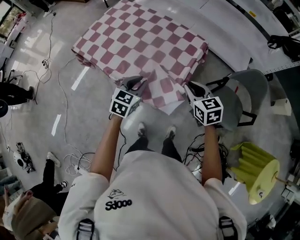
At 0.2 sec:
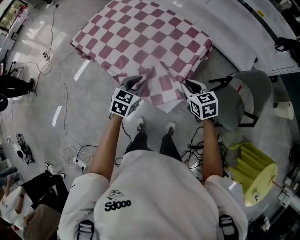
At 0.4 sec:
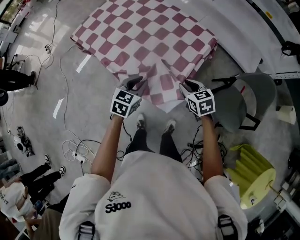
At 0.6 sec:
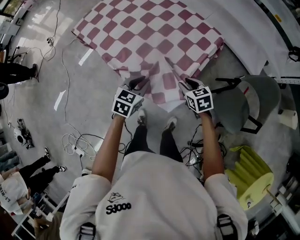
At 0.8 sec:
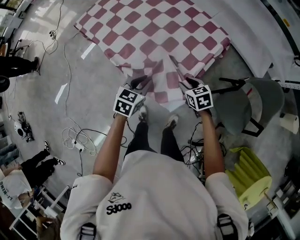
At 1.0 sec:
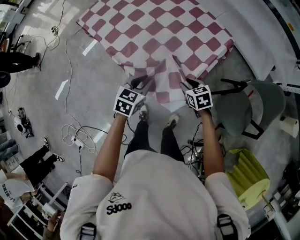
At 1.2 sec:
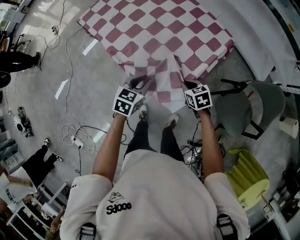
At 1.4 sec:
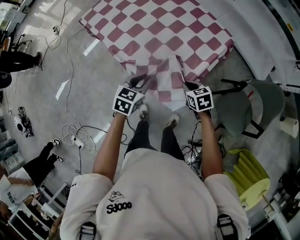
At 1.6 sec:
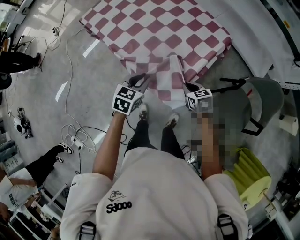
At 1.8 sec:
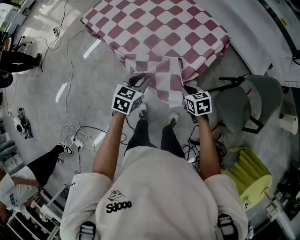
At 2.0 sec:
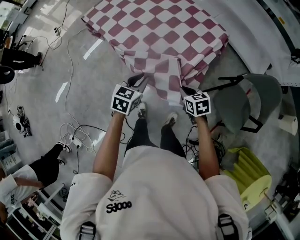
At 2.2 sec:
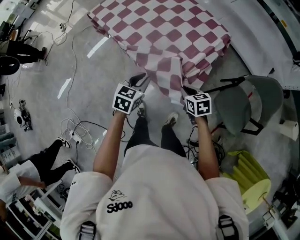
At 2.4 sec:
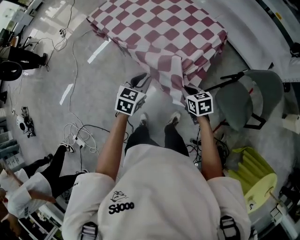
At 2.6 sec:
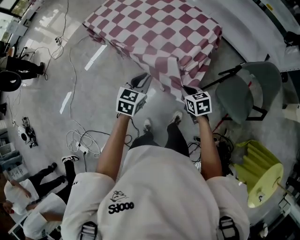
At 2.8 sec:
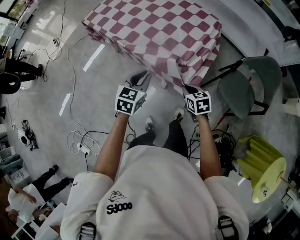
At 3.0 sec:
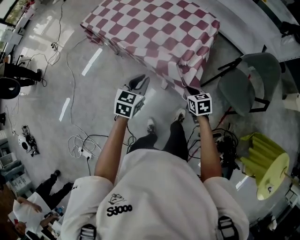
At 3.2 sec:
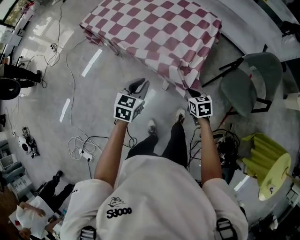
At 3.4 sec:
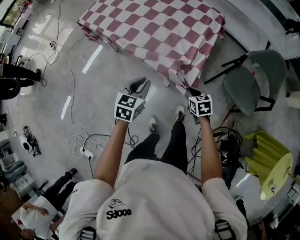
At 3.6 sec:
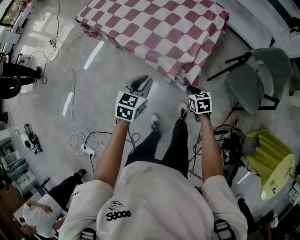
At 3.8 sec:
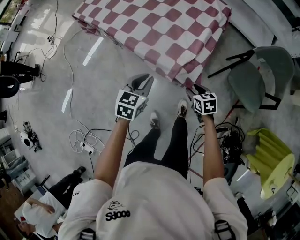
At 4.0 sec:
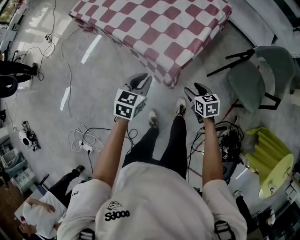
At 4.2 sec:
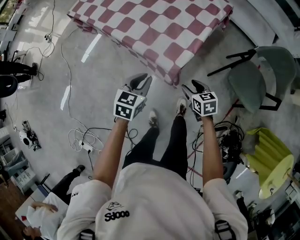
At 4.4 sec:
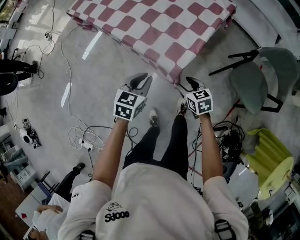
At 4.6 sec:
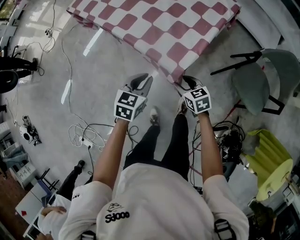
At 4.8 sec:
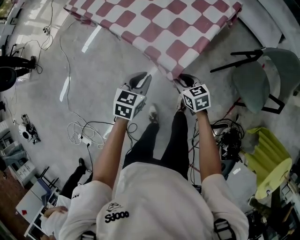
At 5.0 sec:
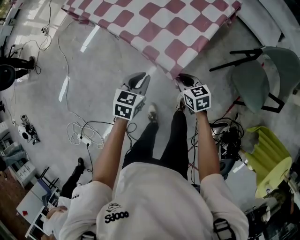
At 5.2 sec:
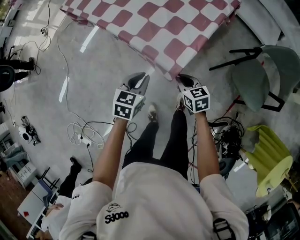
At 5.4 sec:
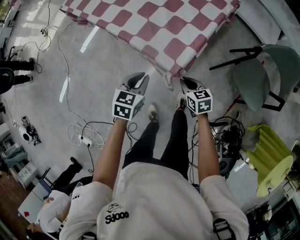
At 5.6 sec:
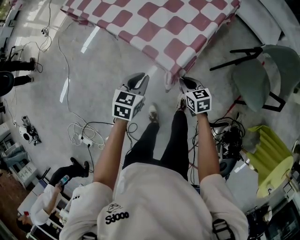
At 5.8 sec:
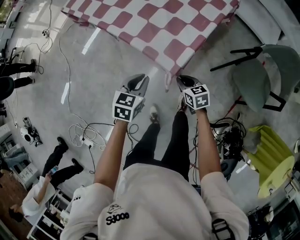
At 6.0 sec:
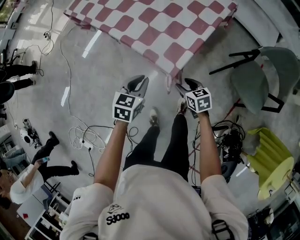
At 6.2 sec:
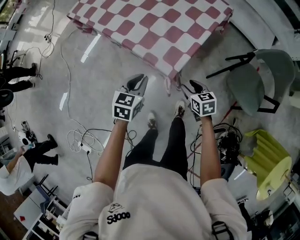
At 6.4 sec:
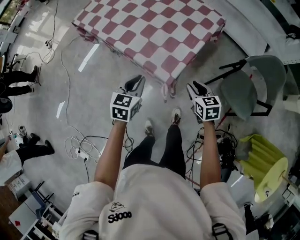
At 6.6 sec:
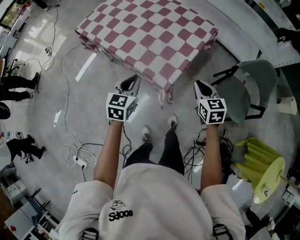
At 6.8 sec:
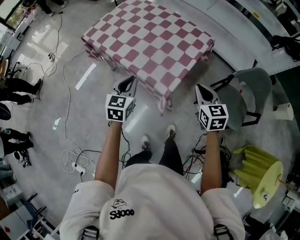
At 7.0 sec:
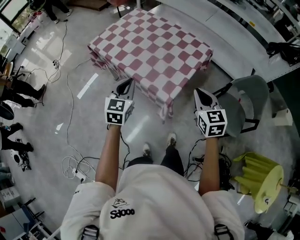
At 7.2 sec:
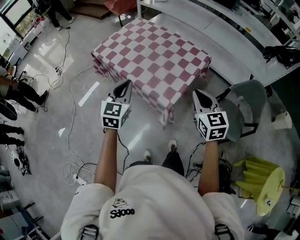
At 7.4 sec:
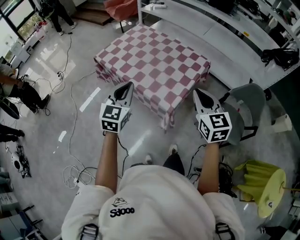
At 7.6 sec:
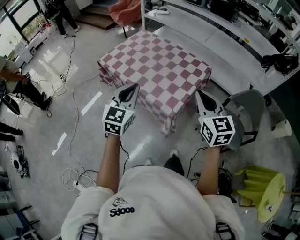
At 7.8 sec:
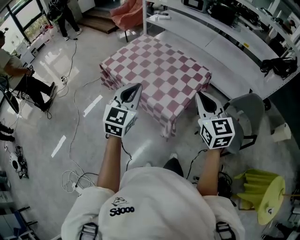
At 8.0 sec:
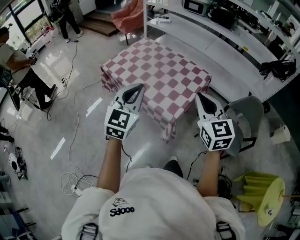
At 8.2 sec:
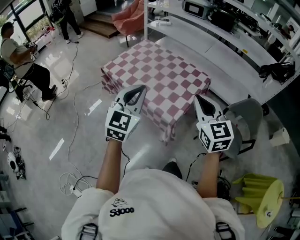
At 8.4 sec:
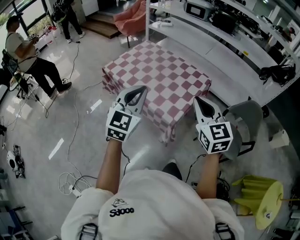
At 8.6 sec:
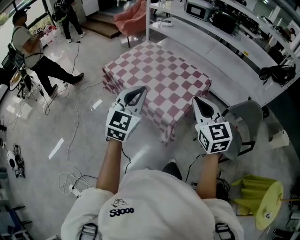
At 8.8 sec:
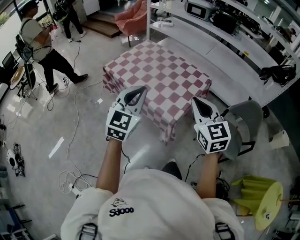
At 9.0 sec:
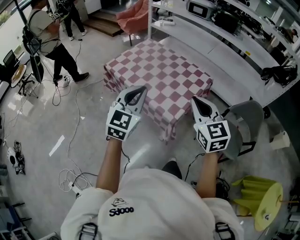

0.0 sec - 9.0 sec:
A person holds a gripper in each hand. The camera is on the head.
0.0 sec - 1.6 sec: The right gripper is displaced downward by approximately 20 cm, turns by some 20 degrees, and opens, then closes once more, while the left gripper moves downward, about 10 cm.
1.6 sec - 3.0 sec: Both grippers travel together backward, approximately 15 cm.
3.0 sec - 4.4 sec: Both grippers travel together downward, about 10 cm. The right gripper opens its fingers.
4.4 sec - 6.0 sec: The right gripper closes and opens again.
6.0 sec - 7.6 sec: The grippers both shift upward by approximately 40 cm. The left gripper tips its fingers upward by some 30 degrees; the right gripper angles its fingers upward, by some 30 degrees, and closes.
7.6 sec - 9.0 sec: The right gripper moves roughly 5 cm, while the left gripper goes roughly 5 cm upward.

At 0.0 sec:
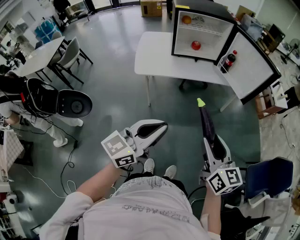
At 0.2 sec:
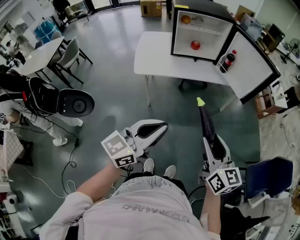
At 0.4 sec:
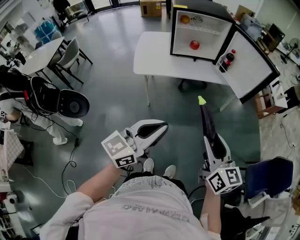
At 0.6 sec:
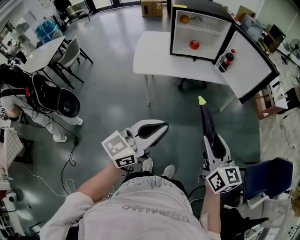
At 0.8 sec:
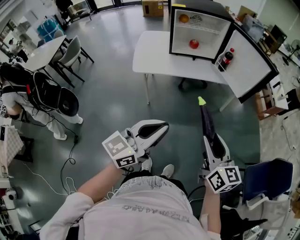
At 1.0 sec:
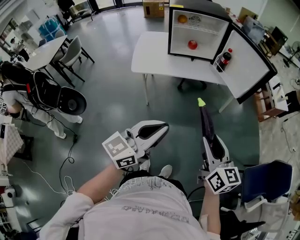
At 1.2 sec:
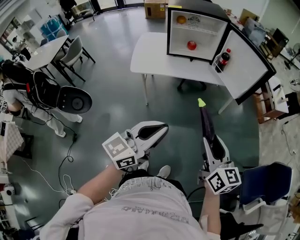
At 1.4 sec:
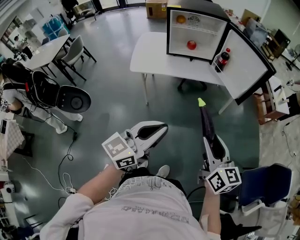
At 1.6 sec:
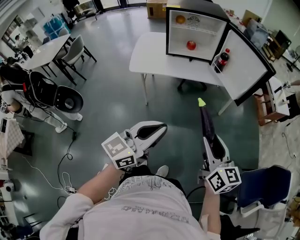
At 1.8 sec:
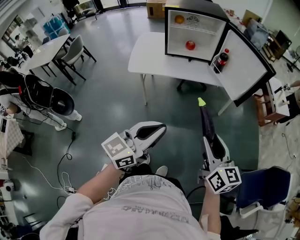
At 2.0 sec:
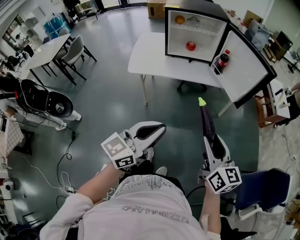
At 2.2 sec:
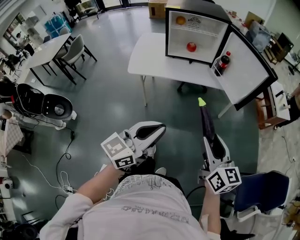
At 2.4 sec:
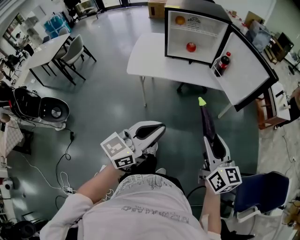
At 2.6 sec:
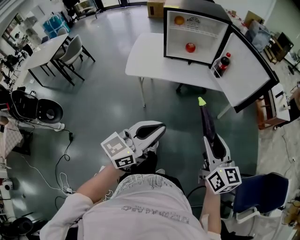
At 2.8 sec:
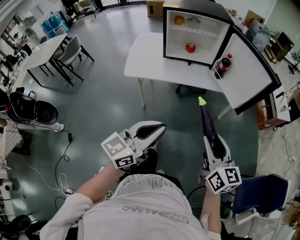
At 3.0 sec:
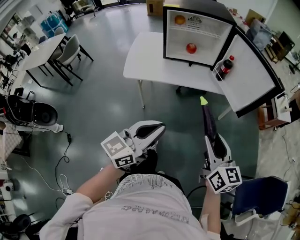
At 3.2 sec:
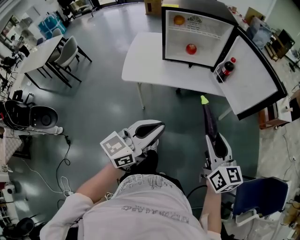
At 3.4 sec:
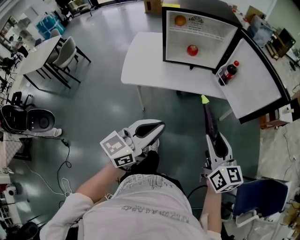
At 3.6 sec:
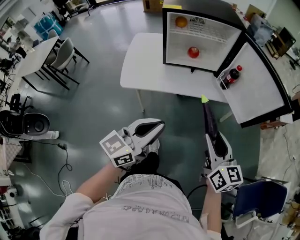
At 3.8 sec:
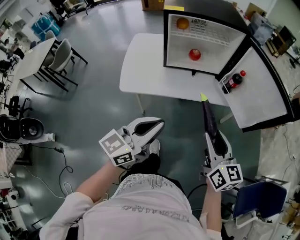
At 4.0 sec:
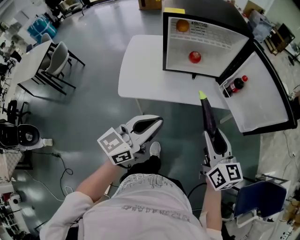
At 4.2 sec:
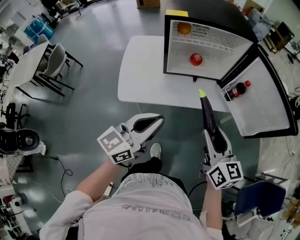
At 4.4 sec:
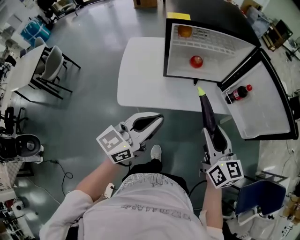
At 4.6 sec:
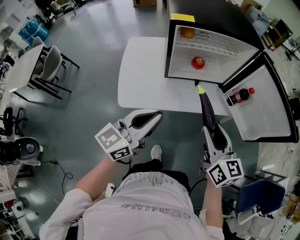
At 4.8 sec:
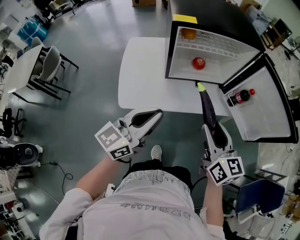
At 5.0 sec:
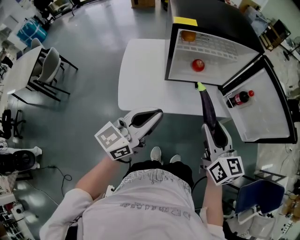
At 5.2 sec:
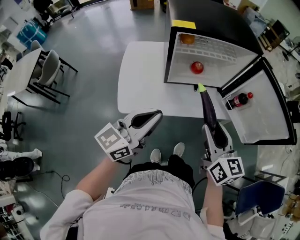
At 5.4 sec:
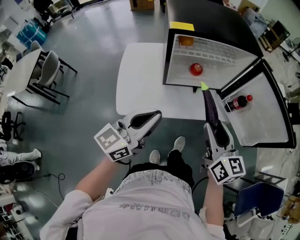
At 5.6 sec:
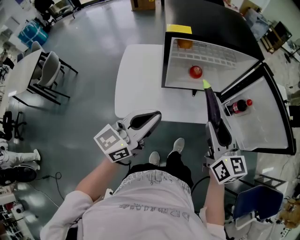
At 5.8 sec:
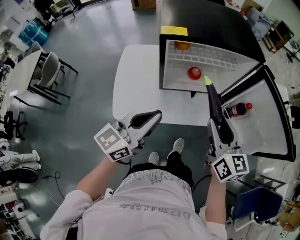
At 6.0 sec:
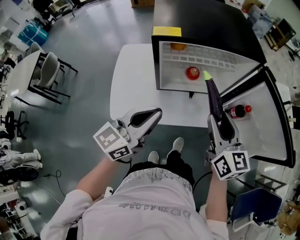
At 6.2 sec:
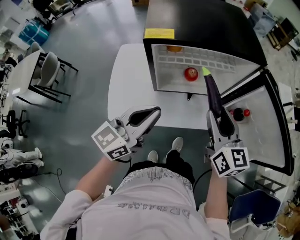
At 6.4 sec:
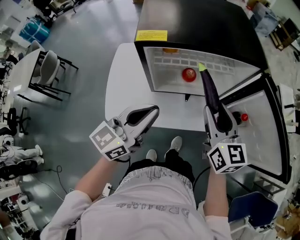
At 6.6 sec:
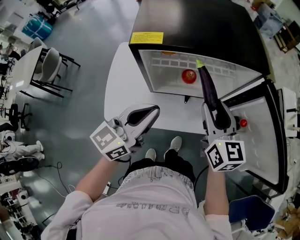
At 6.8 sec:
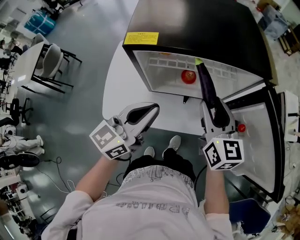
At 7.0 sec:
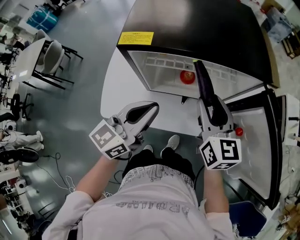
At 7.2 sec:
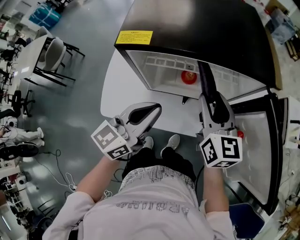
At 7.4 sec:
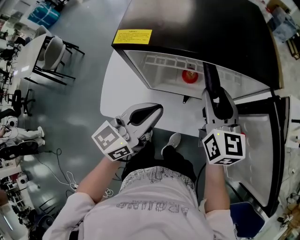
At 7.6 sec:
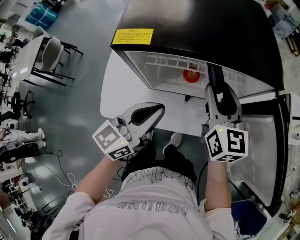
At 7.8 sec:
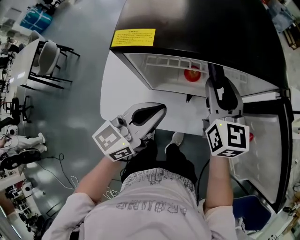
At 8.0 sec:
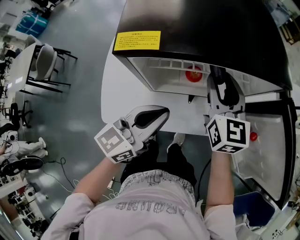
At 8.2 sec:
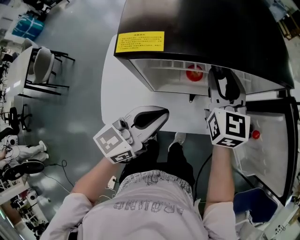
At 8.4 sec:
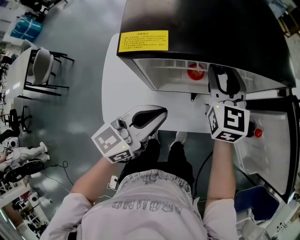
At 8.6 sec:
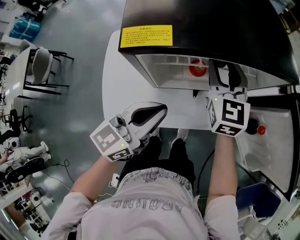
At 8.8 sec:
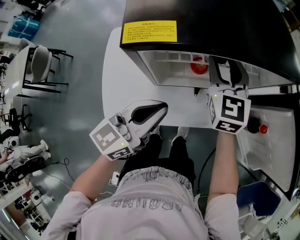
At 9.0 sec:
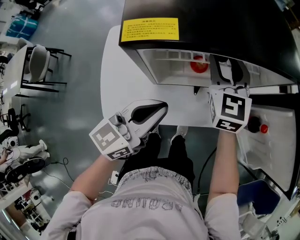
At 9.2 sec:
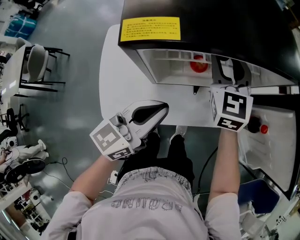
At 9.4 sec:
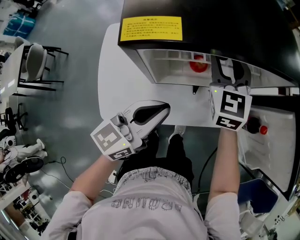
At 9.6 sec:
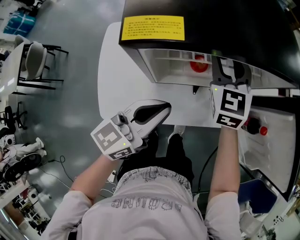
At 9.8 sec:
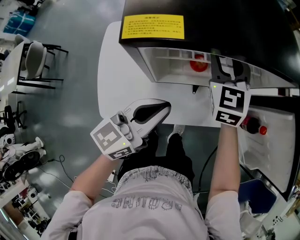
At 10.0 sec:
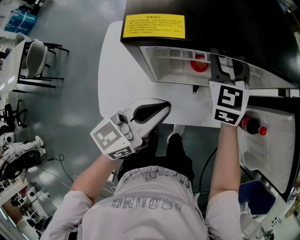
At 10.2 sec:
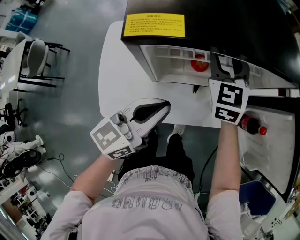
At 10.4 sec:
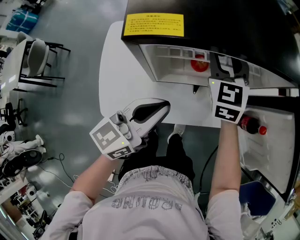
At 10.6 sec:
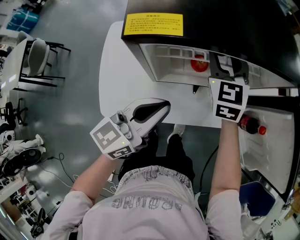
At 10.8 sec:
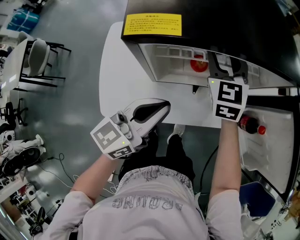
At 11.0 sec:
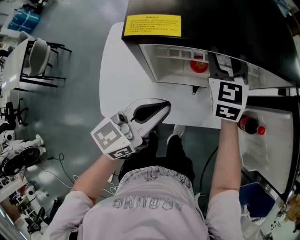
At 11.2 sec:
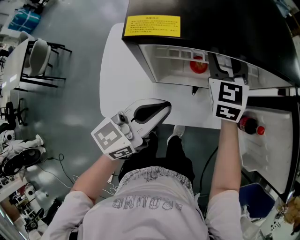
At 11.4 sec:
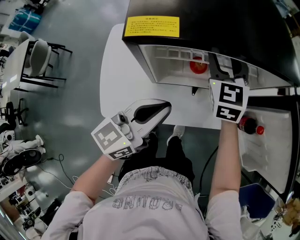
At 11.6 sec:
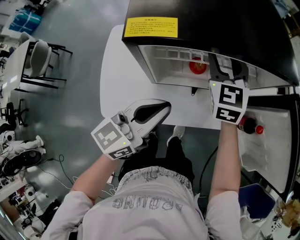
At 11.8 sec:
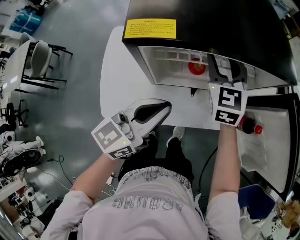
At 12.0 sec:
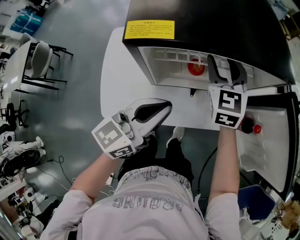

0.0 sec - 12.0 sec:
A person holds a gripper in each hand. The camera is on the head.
0.0 sec - 1.6 sec: The two grippers go about 10 cm to the right.
1.6 sec - 3.0 sec: Both grippers travel together forward, some 10 cm.
3.0 sec - 4.4 sec: The two grippers go some 30 cm forward and to the left.
4.4 sec - 6.0 sec: Both grippers move forward, roughly 15 cm.
6.0 sec - 7.6 sec: The left gripper shifts approximately 10 cm forward and to the right. The right gripper shifts some 20 cm forward.
7.6 sec - 9.0 sec: The right gripper travels to the left and forward by roughly 10 cm, and rotates approximately 30 degrees. The left gripper changes place by approximately 5 cm.
9.0 sec - 12.0 sec: There are only small adjustments of the grippers.

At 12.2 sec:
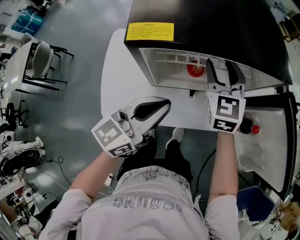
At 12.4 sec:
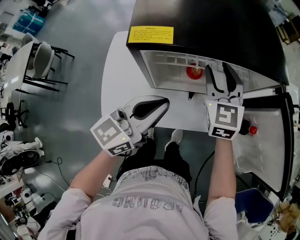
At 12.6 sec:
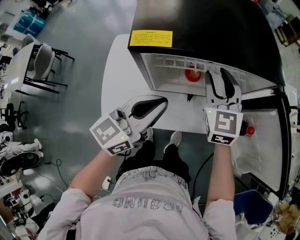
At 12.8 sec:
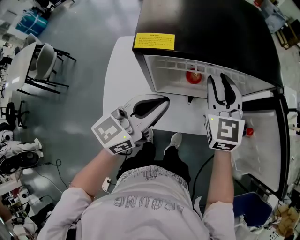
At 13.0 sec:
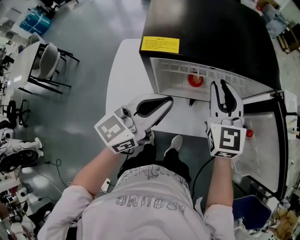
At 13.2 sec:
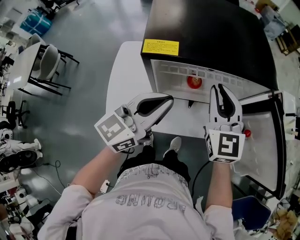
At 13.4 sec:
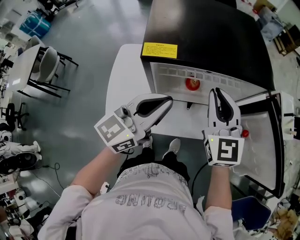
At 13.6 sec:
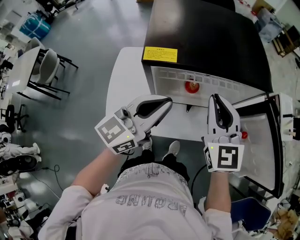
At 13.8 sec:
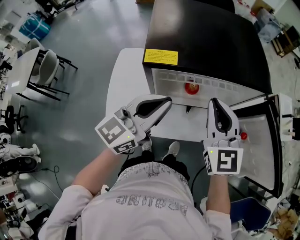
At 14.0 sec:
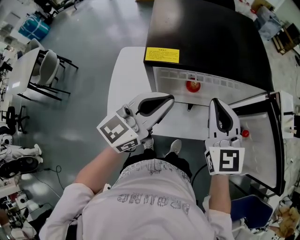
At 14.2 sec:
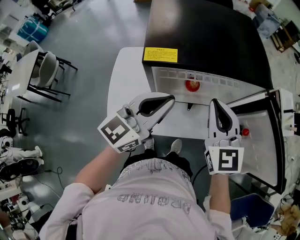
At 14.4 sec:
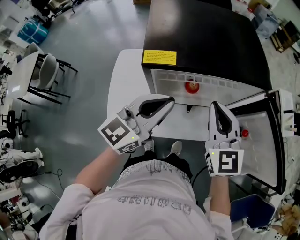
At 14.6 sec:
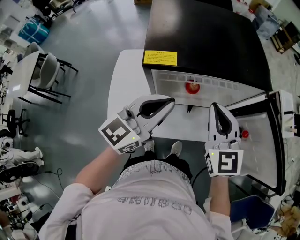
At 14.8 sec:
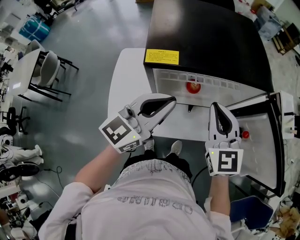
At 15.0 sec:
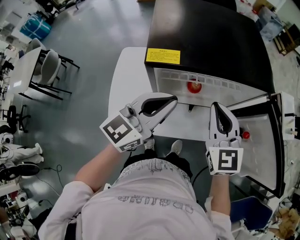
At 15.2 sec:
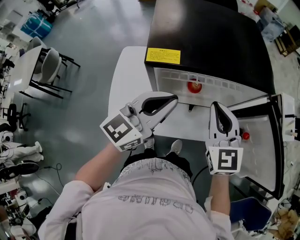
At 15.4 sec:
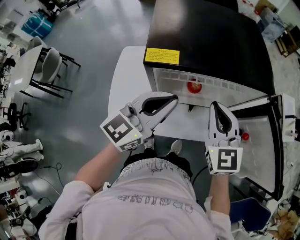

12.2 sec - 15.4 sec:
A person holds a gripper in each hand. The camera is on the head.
12.2 sec - 13.8 sec: The right gripper goes about 15 cm backward and upward, and closes; the left gripper moves upward, roughly 10 cm.
13.8 sec - 15.4 sec: The grippers make only small movements.
